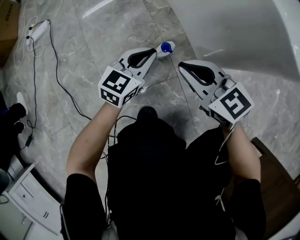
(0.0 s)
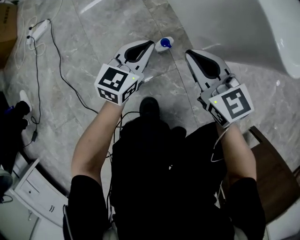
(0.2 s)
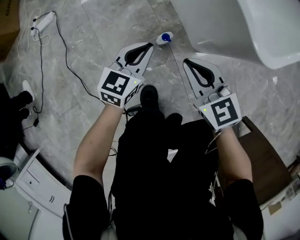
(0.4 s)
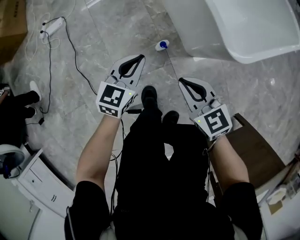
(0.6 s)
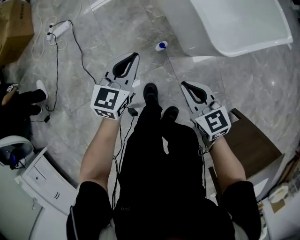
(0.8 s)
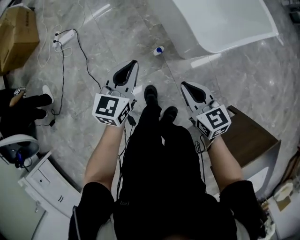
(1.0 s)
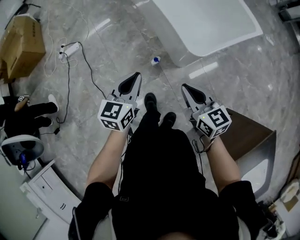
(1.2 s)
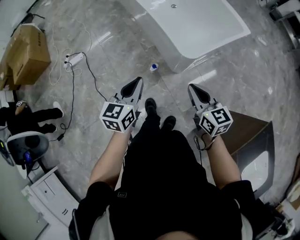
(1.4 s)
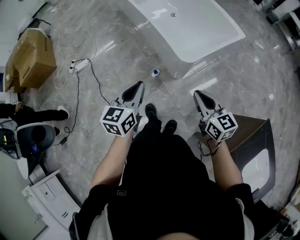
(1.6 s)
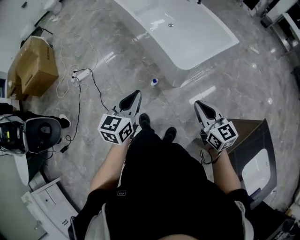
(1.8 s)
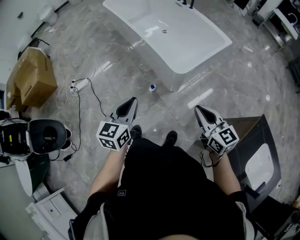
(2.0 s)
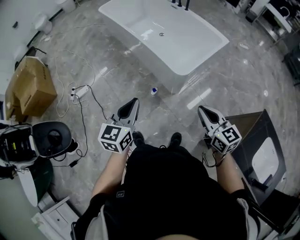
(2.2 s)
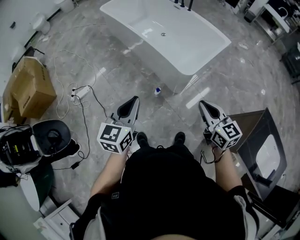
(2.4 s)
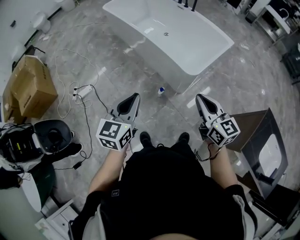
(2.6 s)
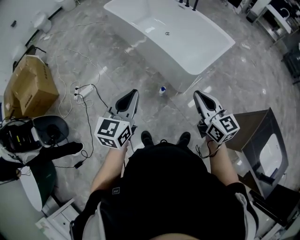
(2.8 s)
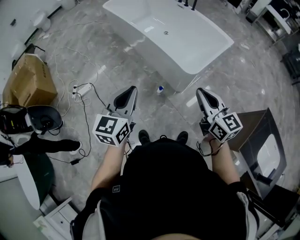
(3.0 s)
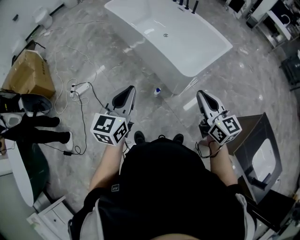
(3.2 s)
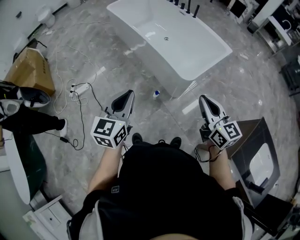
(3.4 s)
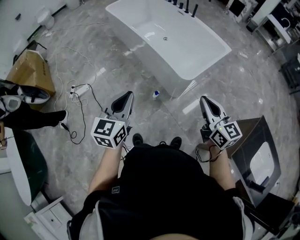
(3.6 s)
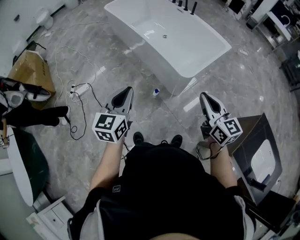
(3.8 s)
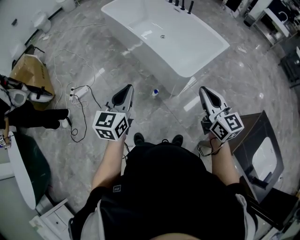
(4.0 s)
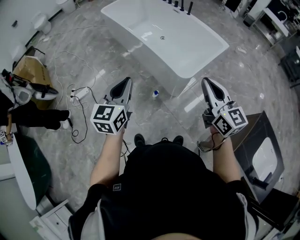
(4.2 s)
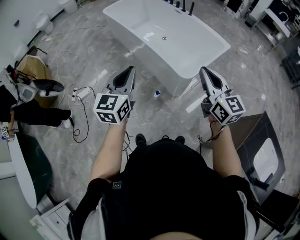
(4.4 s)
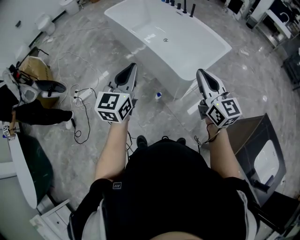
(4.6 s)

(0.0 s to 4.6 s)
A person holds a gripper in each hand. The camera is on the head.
0.0 s - 1.6 s: The two grippers go roughly 70 cm upward. The right gripper swivels some 30 degrees.
1.6 s - 3.0 s: The grippers both shift to the left and upward by some 20 cm.
3.0 s - 4.6 s: The right gripper moves upward and forward, roughly 10 cm; the left gripper is displaced forward and upward by about 10 cm.

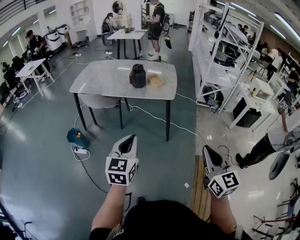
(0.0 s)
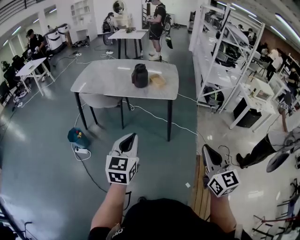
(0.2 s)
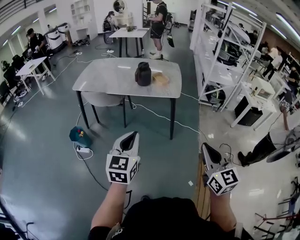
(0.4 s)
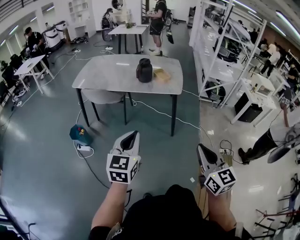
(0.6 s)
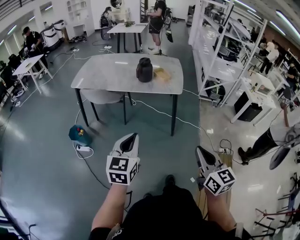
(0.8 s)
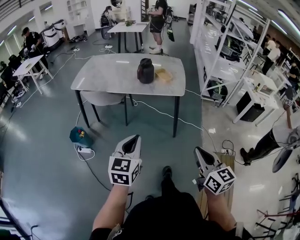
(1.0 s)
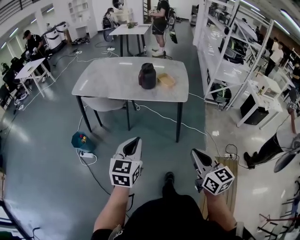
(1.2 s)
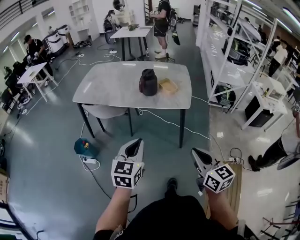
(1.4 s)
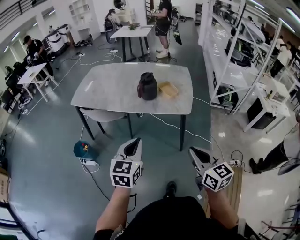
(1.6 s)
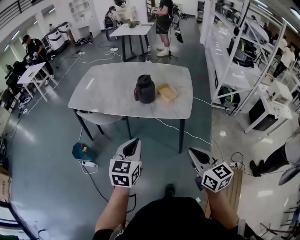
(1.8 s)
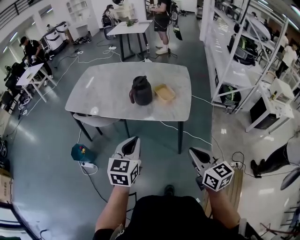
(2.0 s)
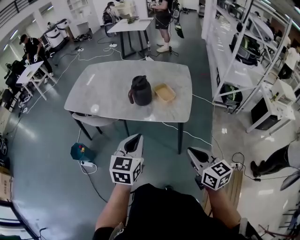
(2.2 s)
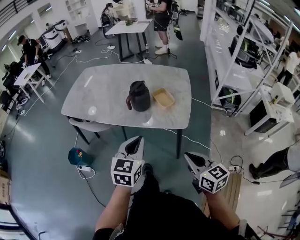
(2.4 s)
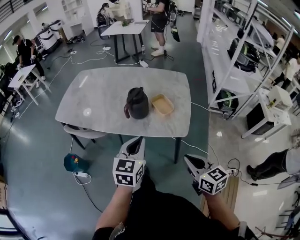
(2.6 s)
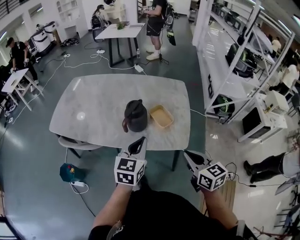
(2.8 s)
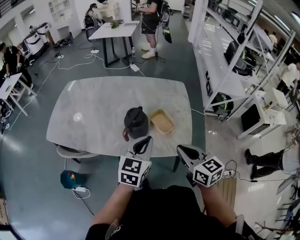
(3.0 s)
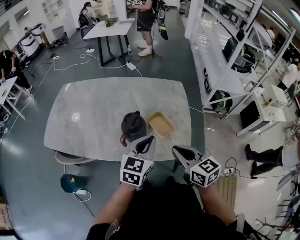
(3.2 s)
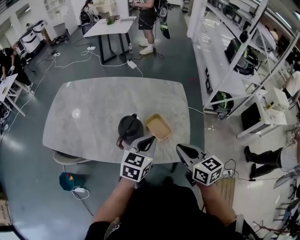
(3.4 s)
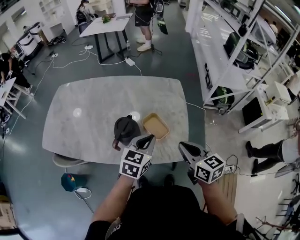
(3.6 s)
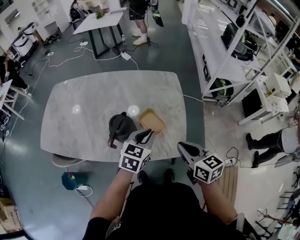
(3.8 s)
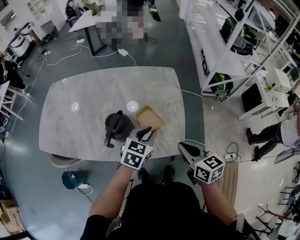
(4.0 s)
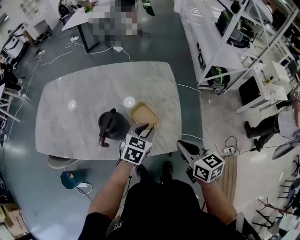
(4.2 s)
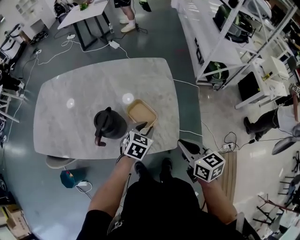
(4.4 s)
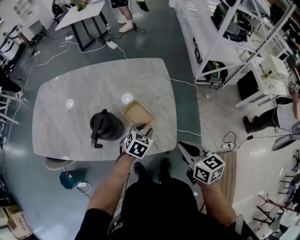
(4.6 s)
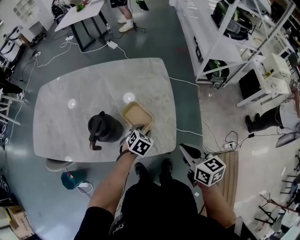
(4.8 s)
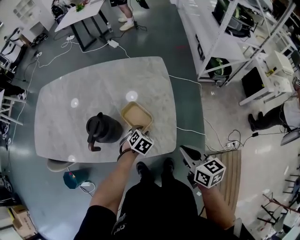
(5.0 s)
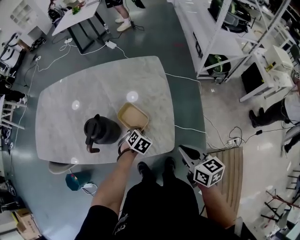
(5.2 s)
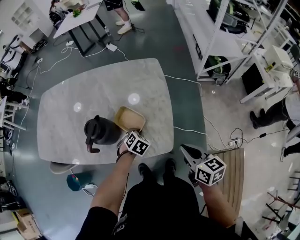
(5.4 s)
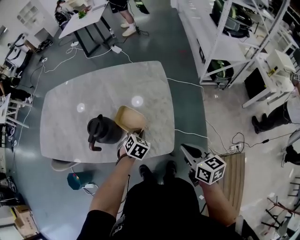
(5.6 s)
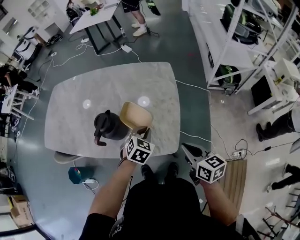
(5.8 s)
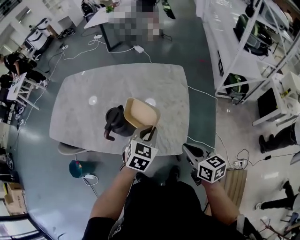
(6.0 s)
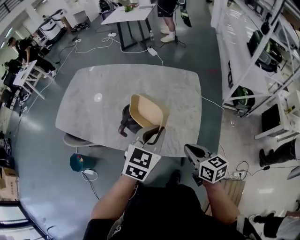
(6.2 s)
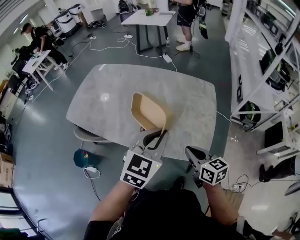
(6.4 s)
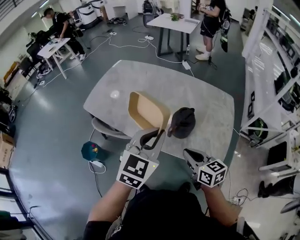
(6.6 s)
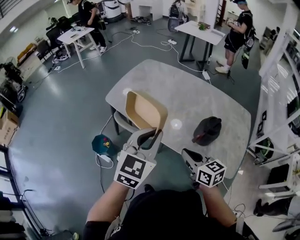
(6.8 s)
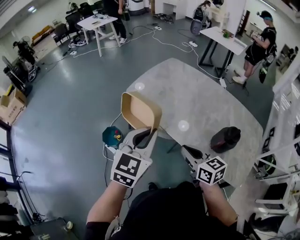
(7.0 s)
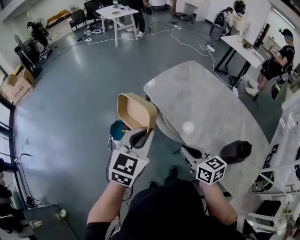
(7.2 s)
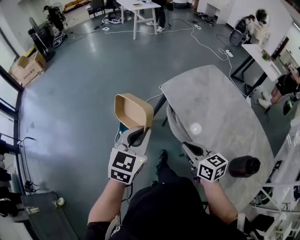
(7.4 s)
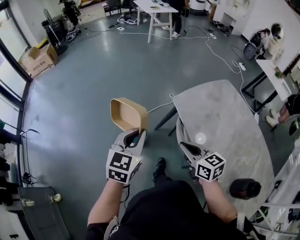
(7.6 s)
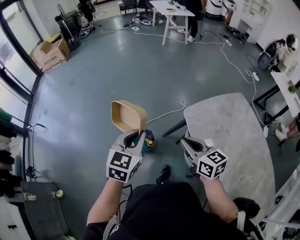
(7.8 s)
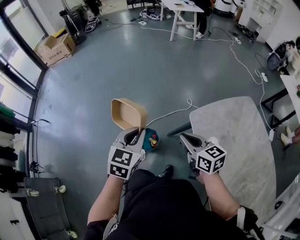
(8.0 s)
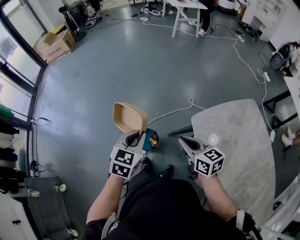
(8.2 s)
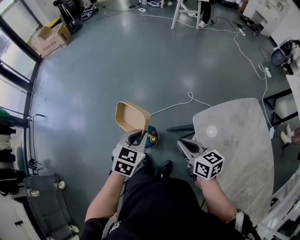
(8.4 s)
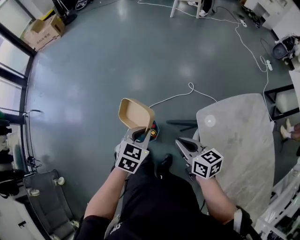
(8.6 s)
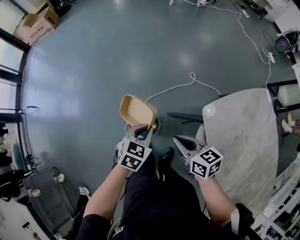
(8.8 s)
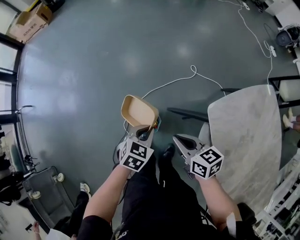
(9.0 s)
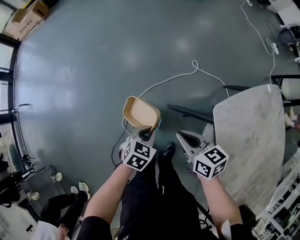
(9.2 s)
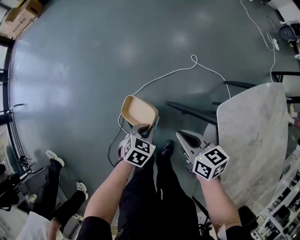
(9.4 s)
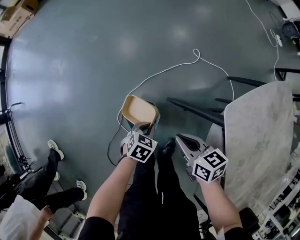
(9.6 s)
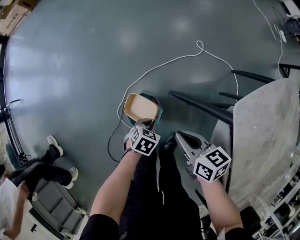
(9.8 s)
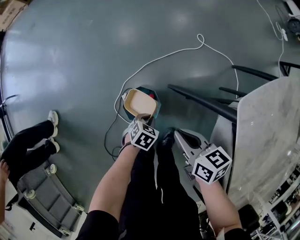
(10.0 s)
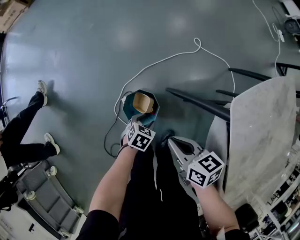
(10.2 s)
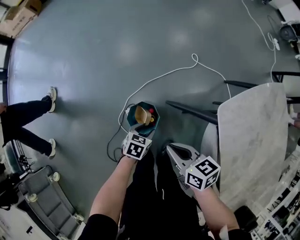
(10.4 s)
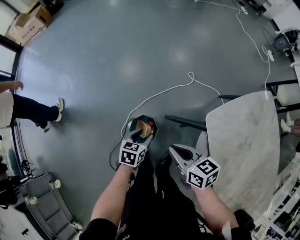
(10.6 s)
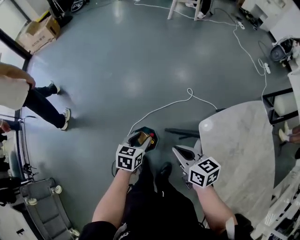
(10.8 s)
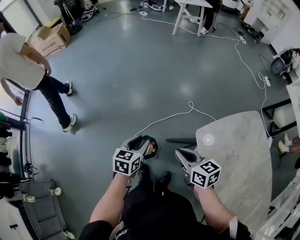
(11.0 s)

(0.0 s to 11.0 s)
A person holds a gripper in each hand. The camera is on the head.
0.0 s - 1.6 s: The left gripper goes some 20 cm forward, while the right gripper heads forward and to the left, covering about 25 cm, and changes its angle by roughly 20 degrees.
1.6 s - 3.2 s: Both grippers travel together forward, roughly 40 cm.
3.2 s - 4.8 s: The left gripper is displaced downward and to the right by approximately 25 cm, tilts its fingers approximately 40 degrees downward, and opens. The right gripper moves to the right and downward, some 20 cm.
4.8 s - 6.2 s: The left gripper moves upward, approximately 25 cm, points its fingers approximately 30 degrees further upward, and closes; the right gripper moves to the left, roughly 5 cm.
6.2 s - 7.8 s: The two grippers travel together, roughly 80 cm. The right gripper rotates about 60 degrees; the left gripper swivels about 70 degrees.
7.8 s - 9.4 s: The left gripper goes about 40 cm downward, and points its fingers approximately 30 degrees further downward. The right gripper moves downward and forward, about 30 cm, and swivels about 20 degrees.
9.4 s - 11.0 s: Both grippers travel together upward, roughly 20 cm. The left gripper rotates some 30 degrees, and opens its fingers.

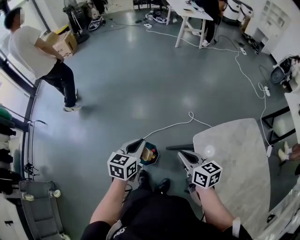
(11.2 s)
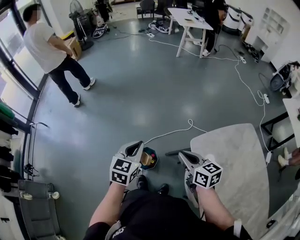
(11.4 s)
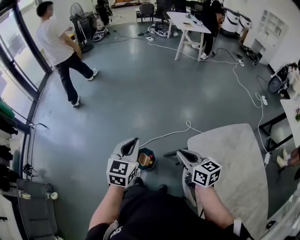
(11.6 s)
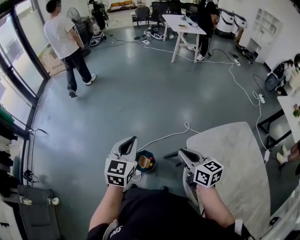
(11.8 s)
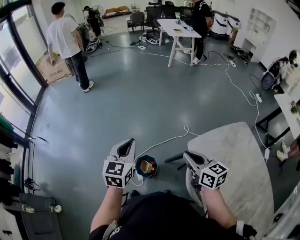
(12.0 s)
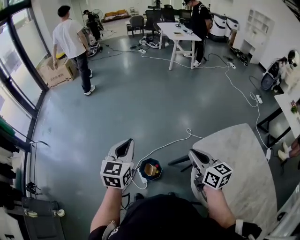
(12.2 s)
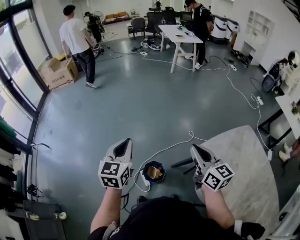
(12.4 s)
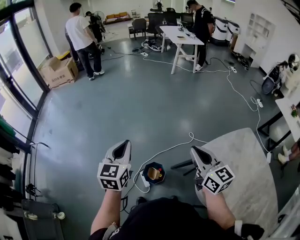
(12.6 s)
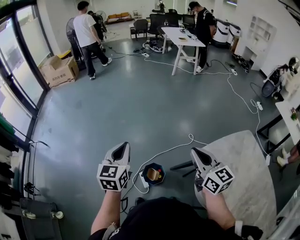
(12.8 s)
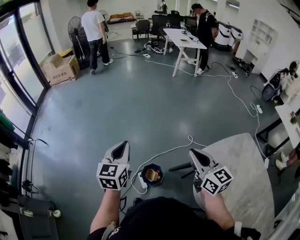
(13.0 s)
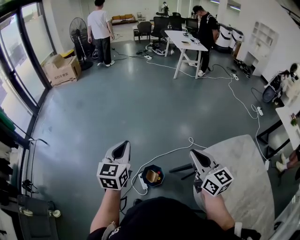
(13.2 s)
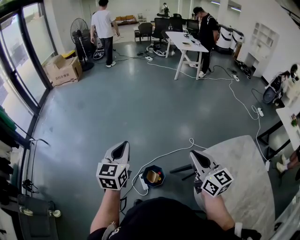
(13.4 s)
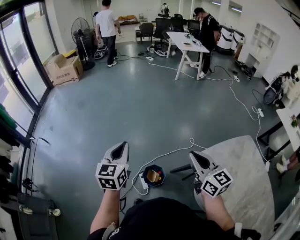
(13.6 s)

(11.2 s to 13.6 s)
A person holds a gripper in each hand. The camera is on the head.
11.2 s - 12.4 s: The left gripper heads upward and to the left, covering some 20 cm, and turns by roughly 20 degrees, while the right gripper goes approximately 15 cm upward, and swivels about 30 degrees.
12.4 s - 13.6 s: The left gripper heads to the left, covering about 5 cm.

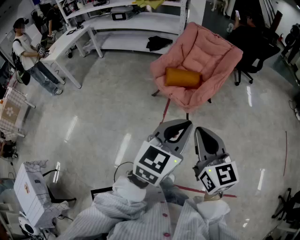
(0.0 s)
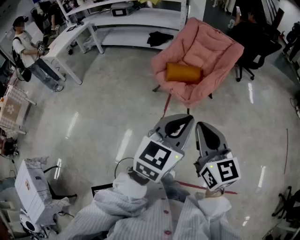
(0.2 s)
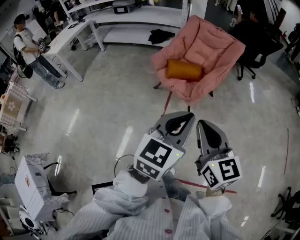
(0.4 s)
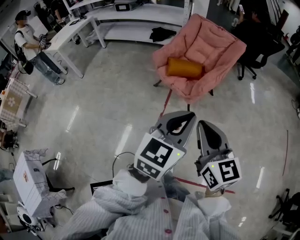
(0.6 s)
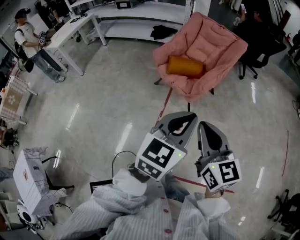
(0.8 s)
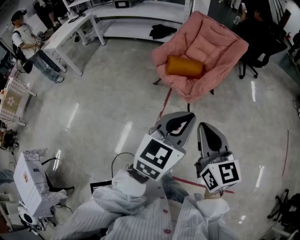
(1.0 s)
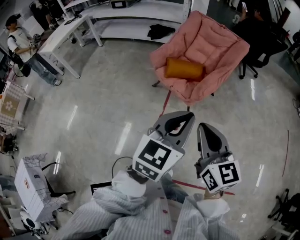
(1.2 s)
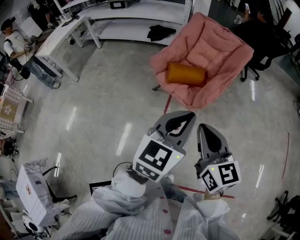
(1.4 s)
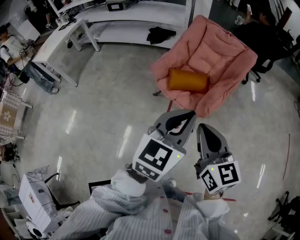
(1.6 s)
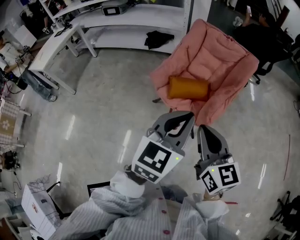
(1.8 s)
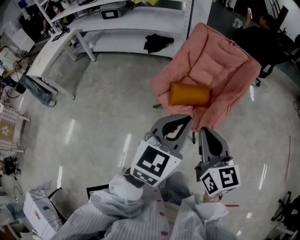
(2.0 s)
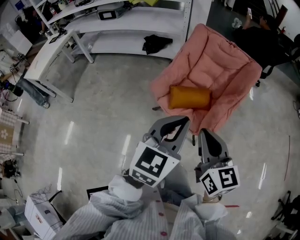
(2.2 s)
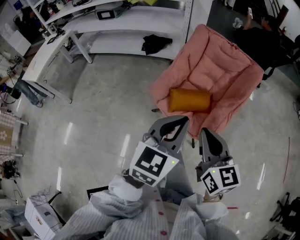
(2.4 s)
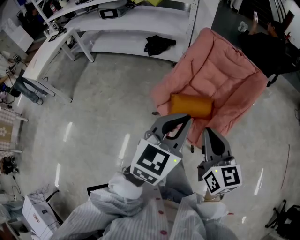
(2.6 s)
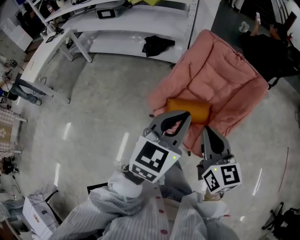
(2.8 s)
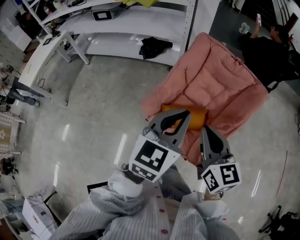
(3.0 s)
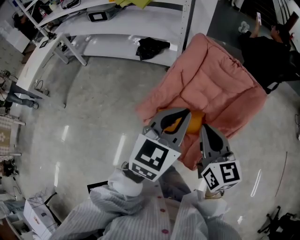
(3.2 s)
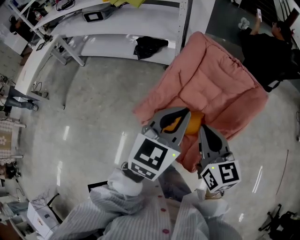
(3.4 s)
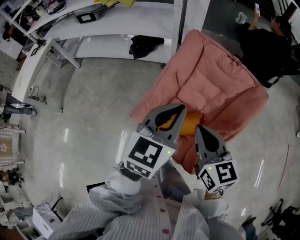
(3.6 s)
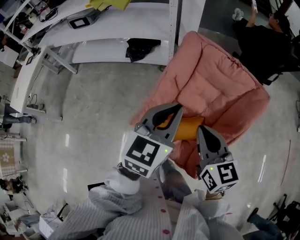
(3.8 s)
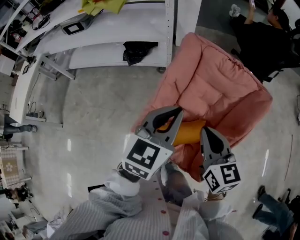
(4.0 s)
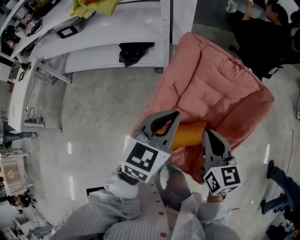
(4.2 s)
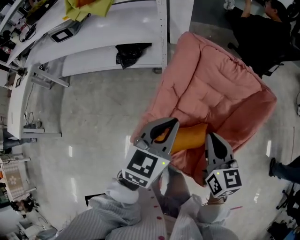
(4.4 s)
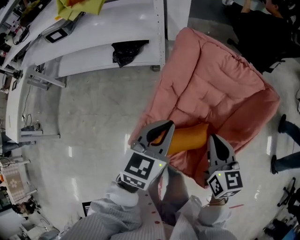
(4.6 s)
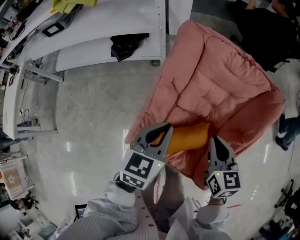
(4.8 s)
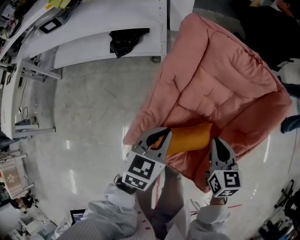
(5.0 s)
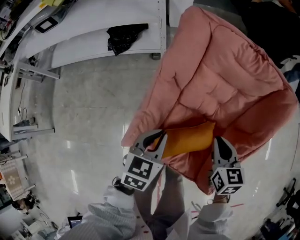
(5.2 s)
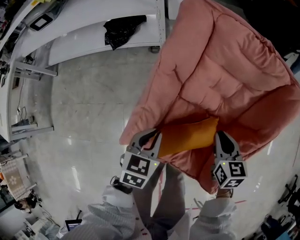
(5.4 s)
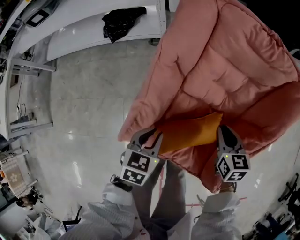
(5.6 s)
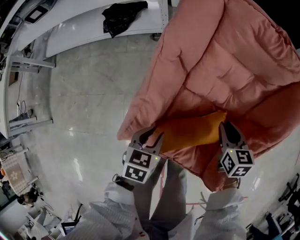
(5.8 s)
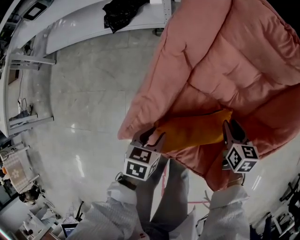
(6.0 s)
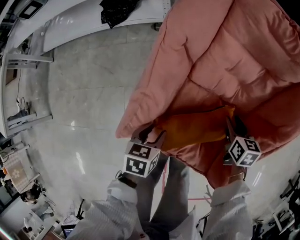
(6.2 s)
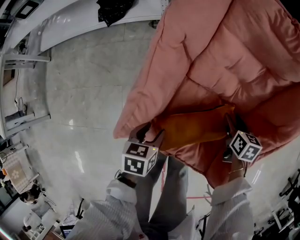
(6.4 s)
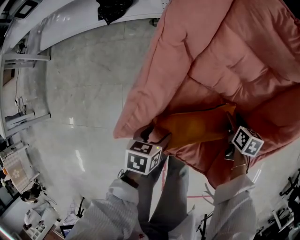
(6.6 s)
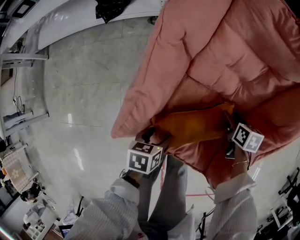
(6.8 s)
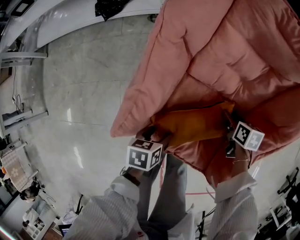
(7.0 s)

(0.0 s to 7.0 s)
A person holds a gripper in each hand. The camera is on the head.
0.0 s - 1.4 s: Both grippers move forward, roughly 10 cm.
1.4 s - 2.8 s: Both grippers travel together forward, approximately 35 cm.
2.8 s - 4.2 s: Both grippers travel together forward, about 30 cm.
4.2 s - 5.6 s: The grippers both shift downward by some 35 cm. The left gripper rotates about 30 degrees; the right gripper swivels roughly 20 degrees.
5.6 s - 7.0 s: The grippers both shift downward by about 15 cm. The right gripper rotates approximately 30 degrees, and opens its fingers, while the left gripper swivels about 30 degrees, and opens up.
